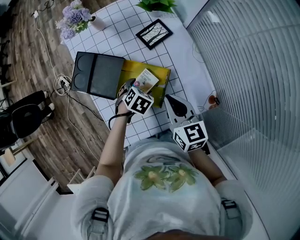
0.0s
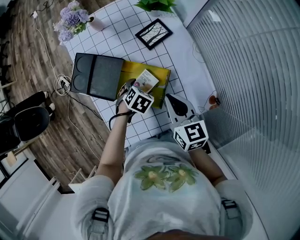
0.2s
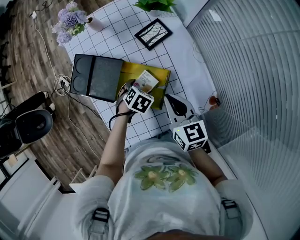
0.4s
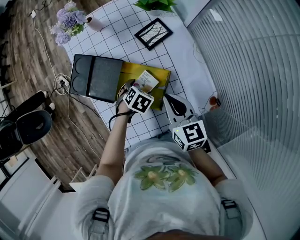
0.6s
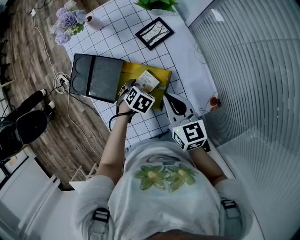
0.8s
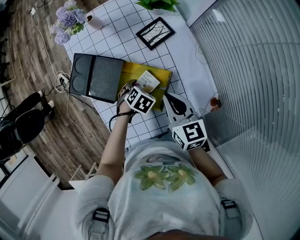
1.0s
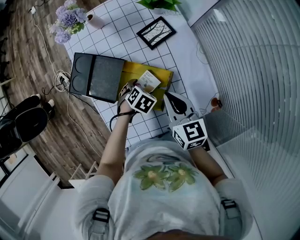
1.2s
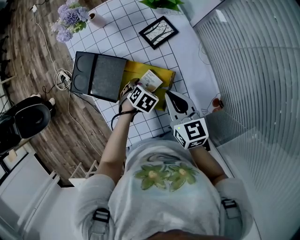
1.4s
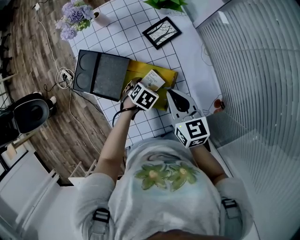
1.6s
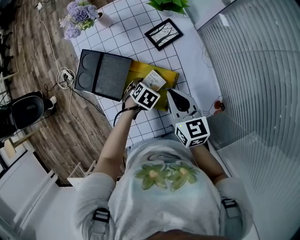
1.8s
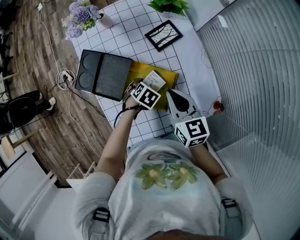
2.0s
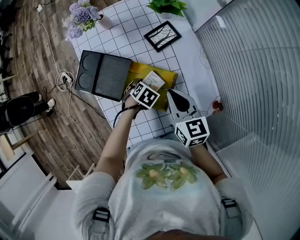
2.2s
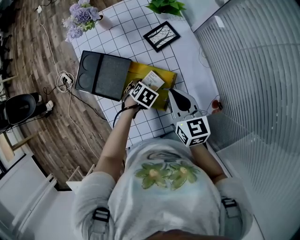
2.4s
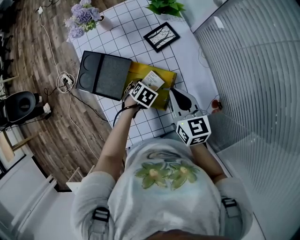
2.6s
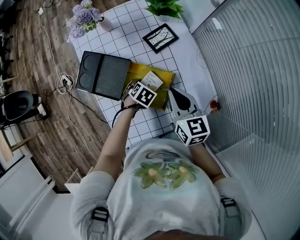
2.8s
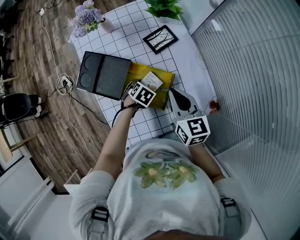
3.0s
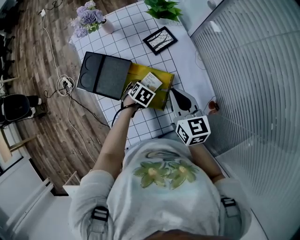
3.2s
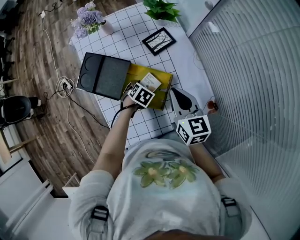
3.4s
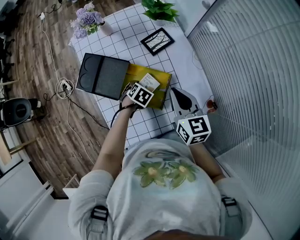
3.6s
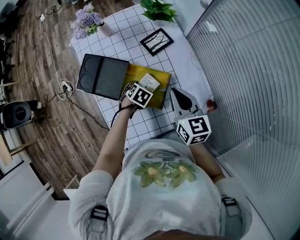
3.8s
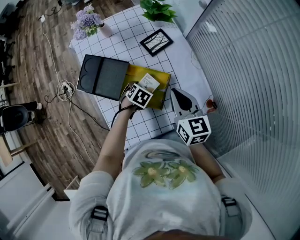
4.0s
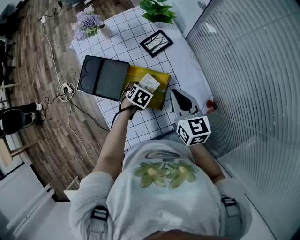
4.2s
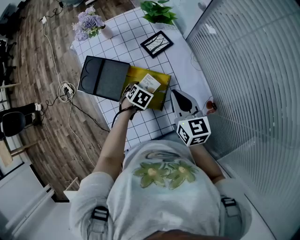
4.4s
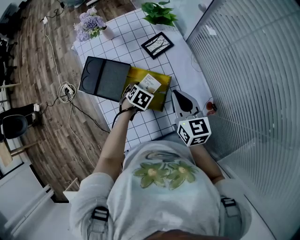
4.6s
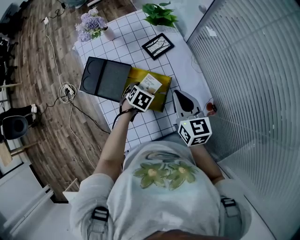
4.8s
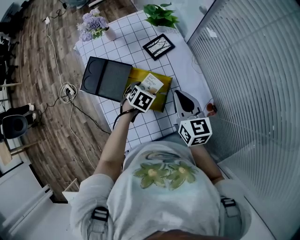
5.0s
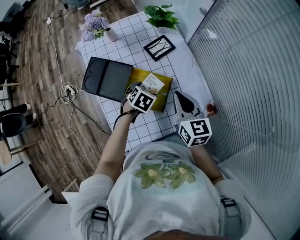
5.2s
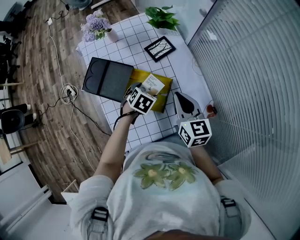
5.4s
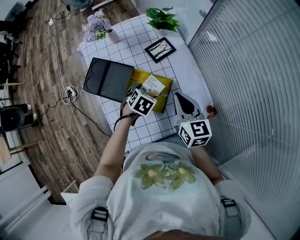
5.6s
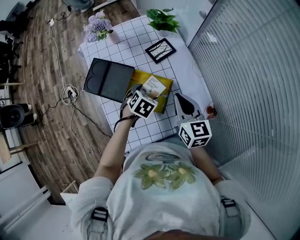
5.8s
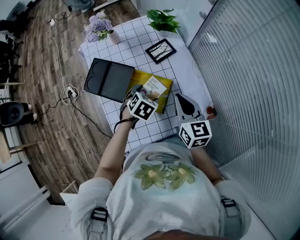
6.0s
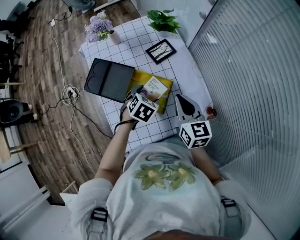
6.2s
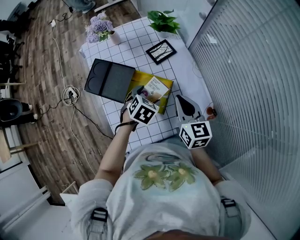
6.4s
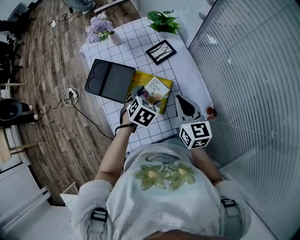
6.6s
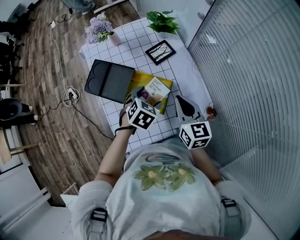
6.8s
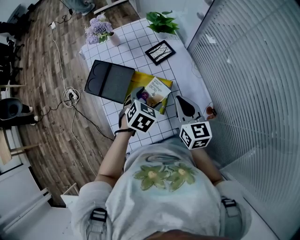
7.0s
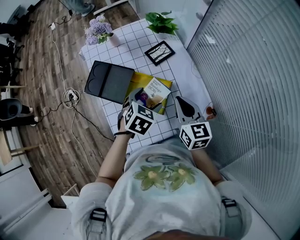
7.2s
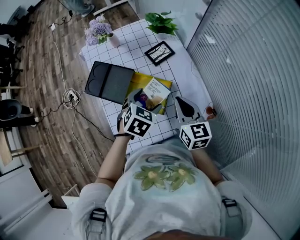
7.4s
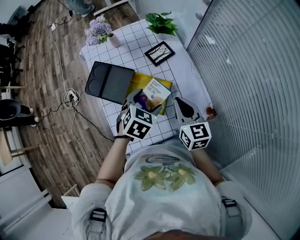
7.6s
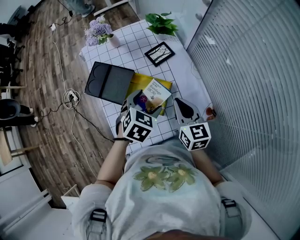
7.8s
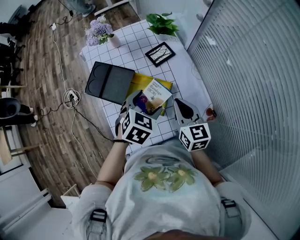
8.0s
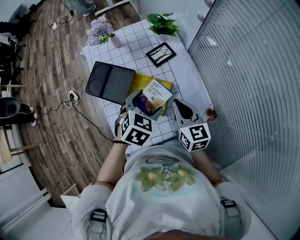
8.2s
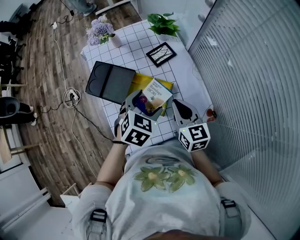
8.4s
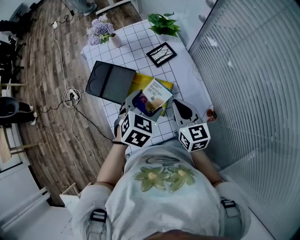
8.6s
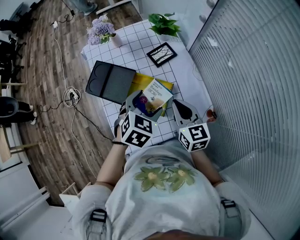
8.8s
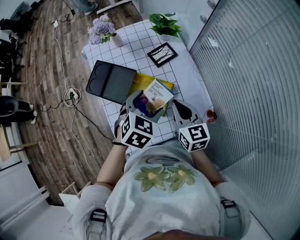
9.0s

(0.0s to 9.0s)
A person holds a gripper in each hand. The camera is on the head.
0.0s - 4.4s: The grippers stay close to where they were, moving slightly.
4.4s - 6.0s: The left gripper goes approximately 10 cm upward.
6.0s - 7.6s: The left gripper moves upward, approximately 10 cm.
7.6s - 9.0s: There are only small adjustments of the grippers.

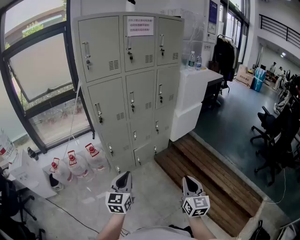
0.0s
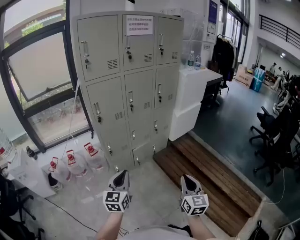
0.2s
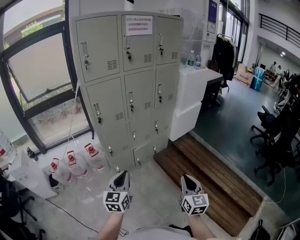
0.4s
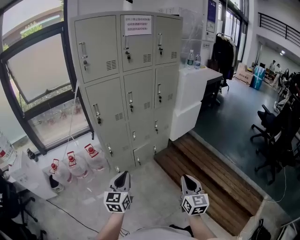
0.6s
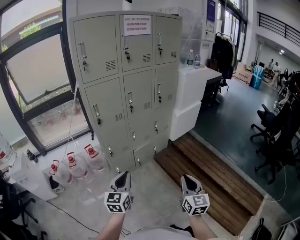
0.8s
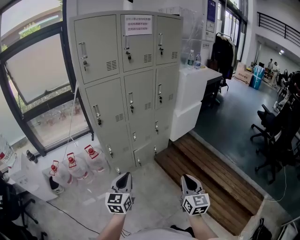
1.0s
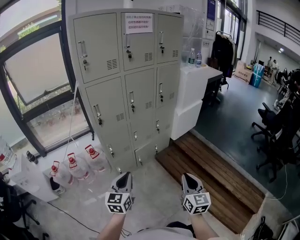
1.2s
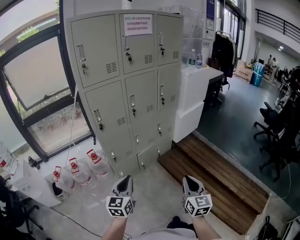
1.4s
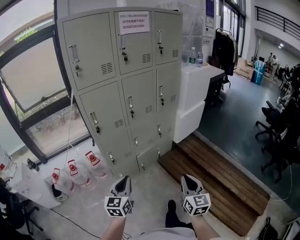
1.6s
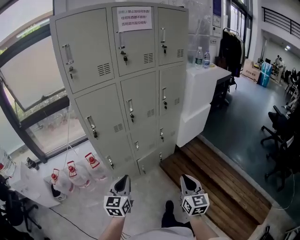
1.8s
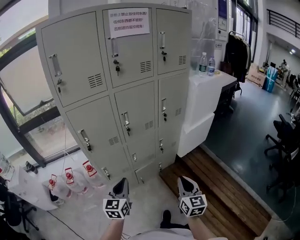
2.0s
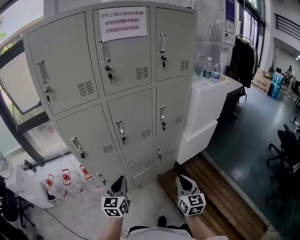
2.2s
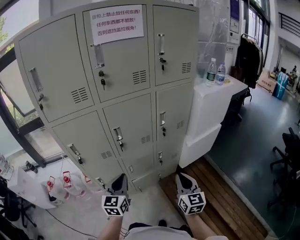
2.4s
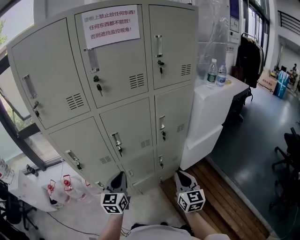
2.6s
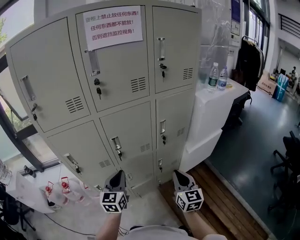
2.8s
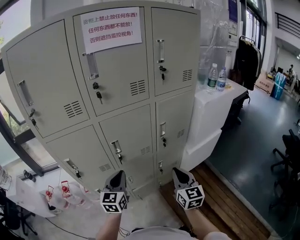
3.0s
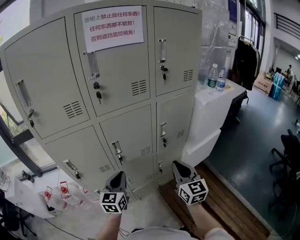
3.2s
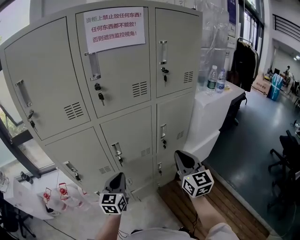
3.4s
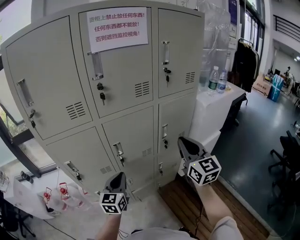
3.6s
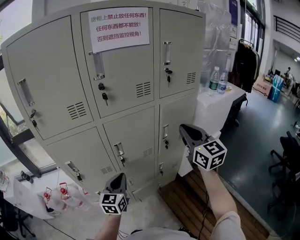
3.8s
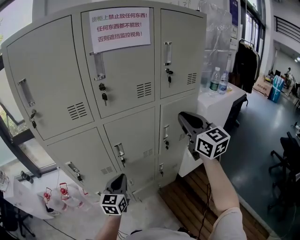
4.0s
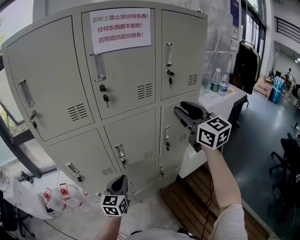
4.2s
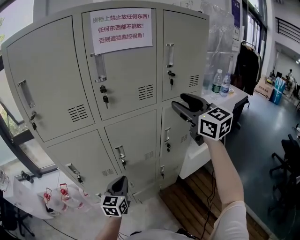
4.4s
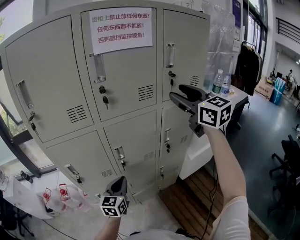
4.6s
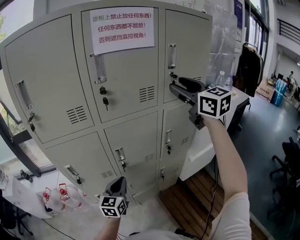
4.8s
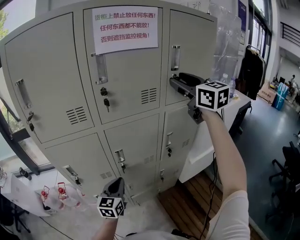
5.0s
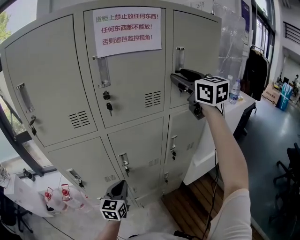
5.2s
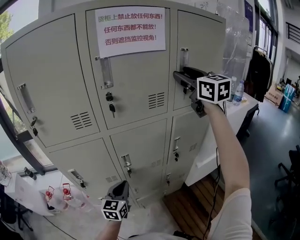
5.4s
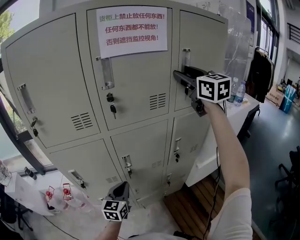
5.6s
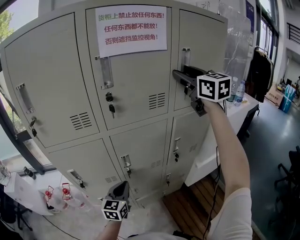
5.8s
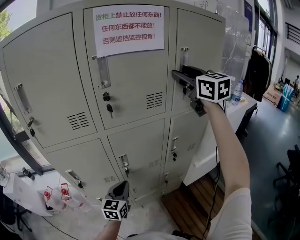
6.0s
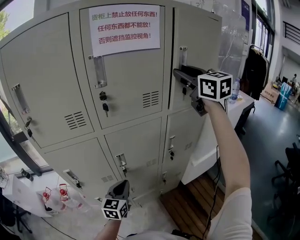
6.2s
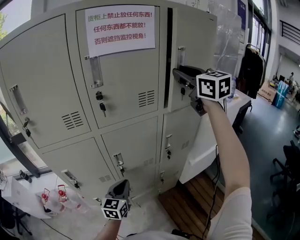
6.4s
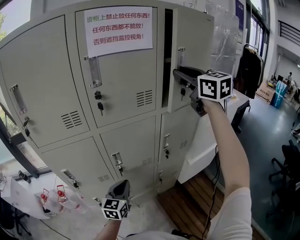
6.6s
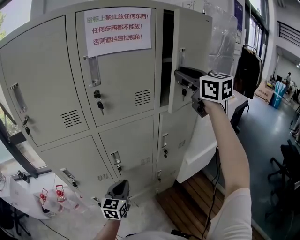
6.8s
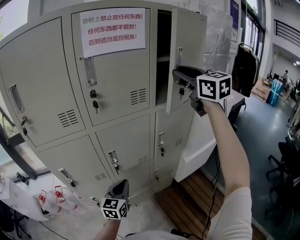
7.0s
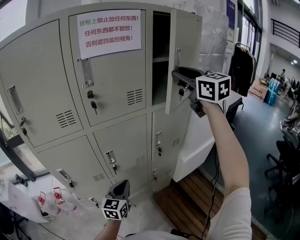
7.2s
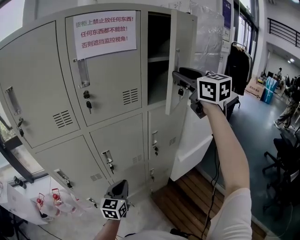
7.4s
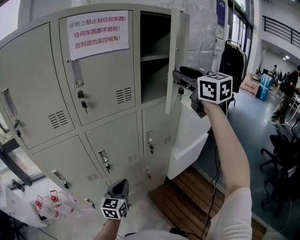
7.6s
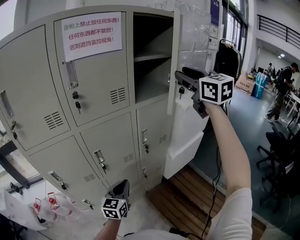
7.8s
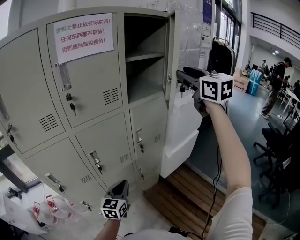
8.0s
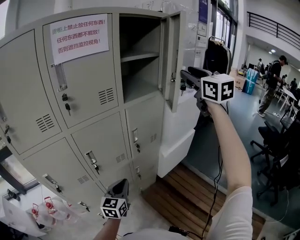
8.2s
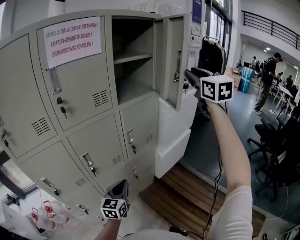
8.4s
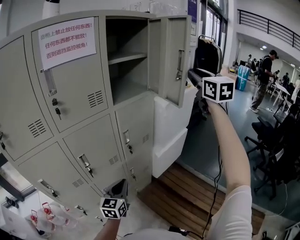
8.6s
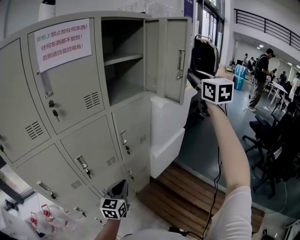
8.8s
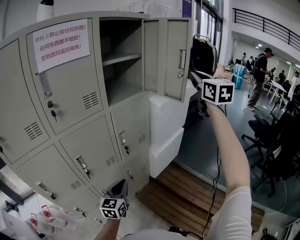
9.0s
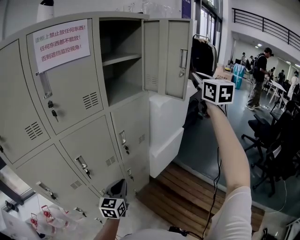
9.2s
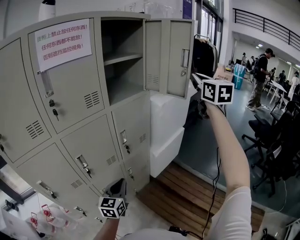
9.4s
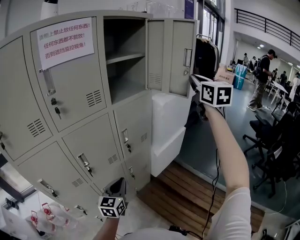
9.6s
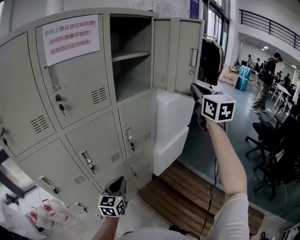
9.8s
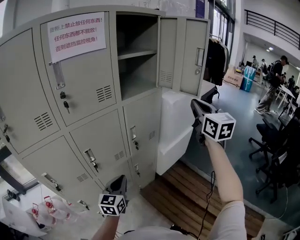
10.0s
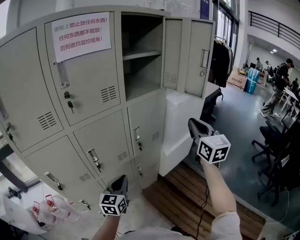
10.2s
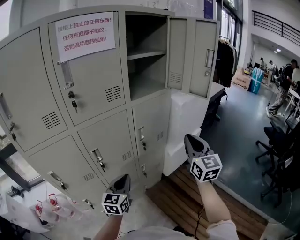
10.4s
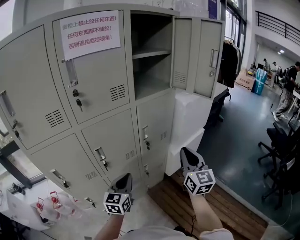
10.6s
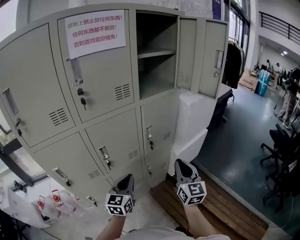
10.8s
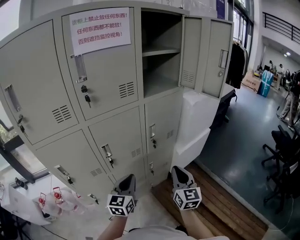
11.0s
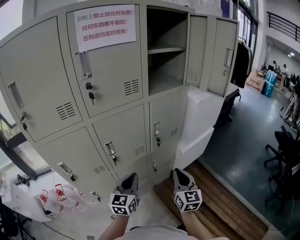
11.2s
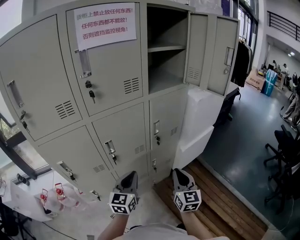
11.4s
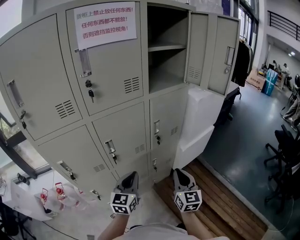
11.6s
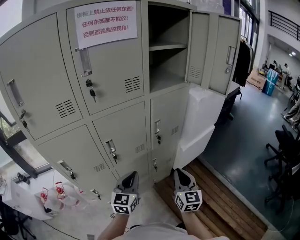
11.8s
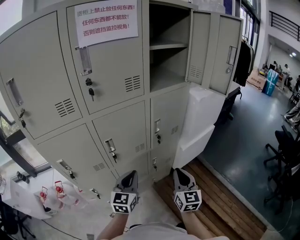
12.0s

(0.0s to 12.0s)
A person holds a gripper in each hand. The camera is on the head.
0.0s - 1.6s: The grippers both shift forward by approximately 10 cm.
1.6s - 3.0s: The two grippers travel together, forward, roughly 40 cm.
3.0s - 4.4s: The right gripper goes some 35 cm upward and forward, swivels about 30 degrees, and opens.
4.4s - 6.0s: The right gripper heads forward and upward, covering approximately 15 cm.
6.0s - 7.6s: The left gripper heads to the right, covering about 10 cm; the right gripper goes about 15 cm backward and to the right.
7.6s - 9.0s: The left gripper moves to the right, roughly 10 cm. Meanwhile the right gripper shifts roughly 20 cm to the right, changes its angle by approximately 30 degrees, and closes its fingers.
9.0s - 10.4s: The right gripper travels downward, to the left and backward by about 30 cm. Meanwhile the left gripper shifts roughly 5 cm to the left.
10.4s - 12.0s: The right gripper heads downward, to the left and backward, covering roughly 20 cm.

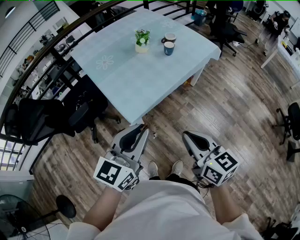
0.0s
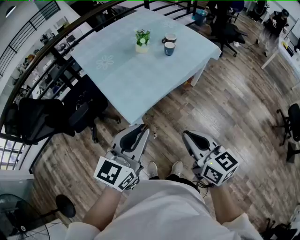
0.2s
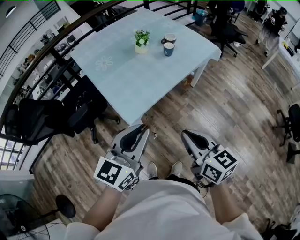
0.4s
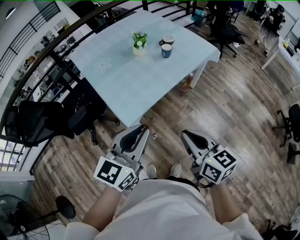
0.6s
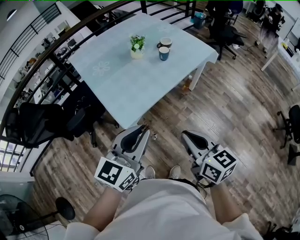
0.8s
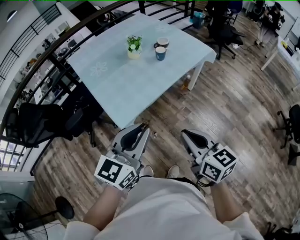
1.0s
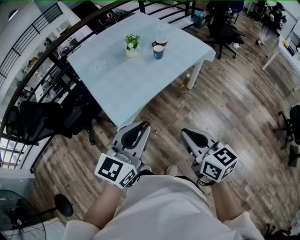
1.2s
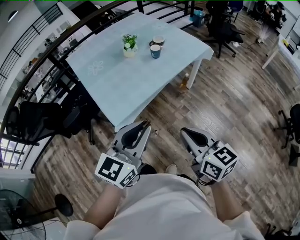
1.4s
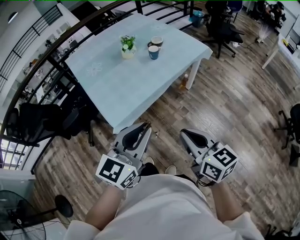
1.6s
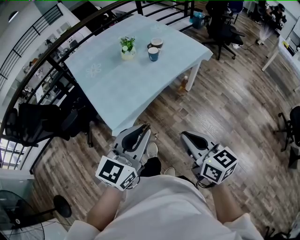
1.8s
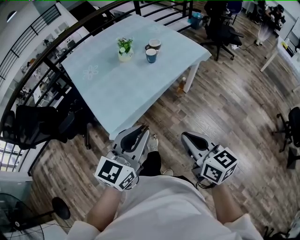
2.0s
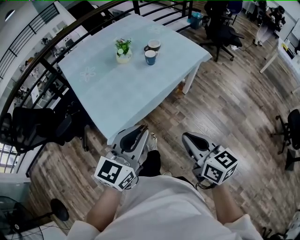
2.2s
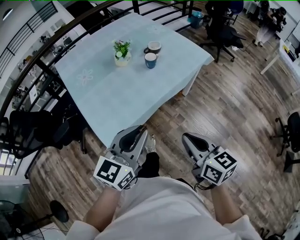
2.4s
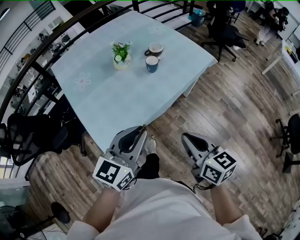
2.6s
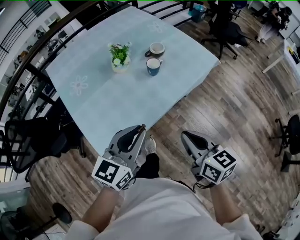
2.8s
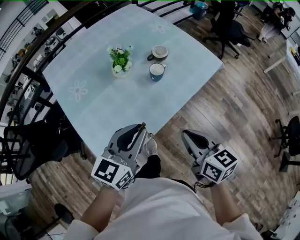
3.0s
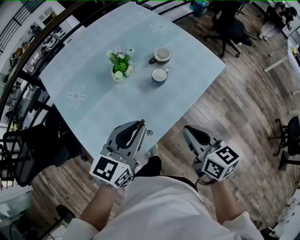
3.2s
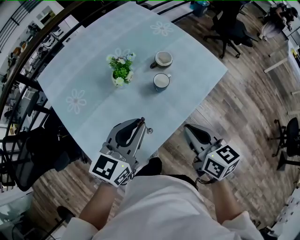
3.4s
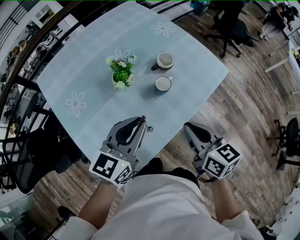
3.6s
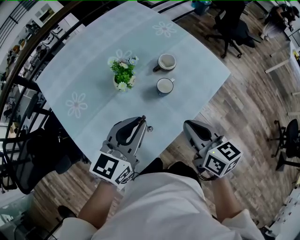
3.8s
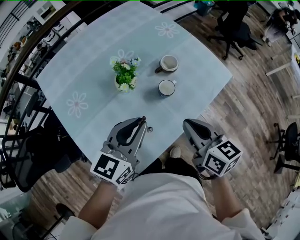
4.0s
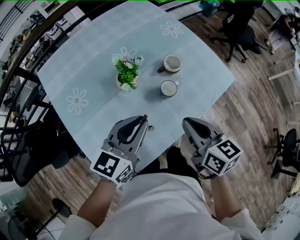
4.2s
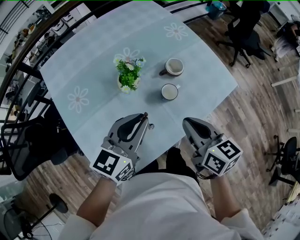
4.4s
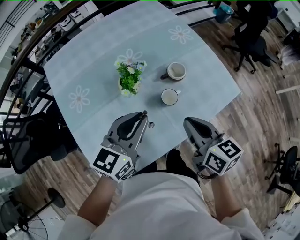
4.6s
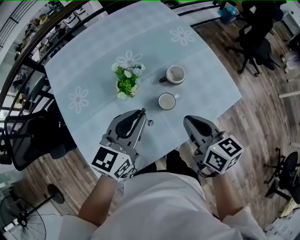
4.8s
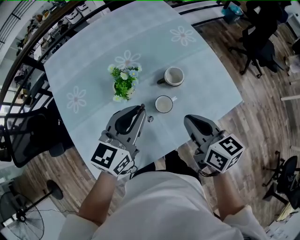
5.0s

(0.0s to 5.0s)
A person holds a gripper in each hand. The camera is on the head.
0.0s - 1.6s: Both grippers move to the right, some 15 cm.
1.6s - 3.4s: The two grippers go some 40 cm forward.
3.4s - 5.0s: The two grippers go about 15 cm forward.
